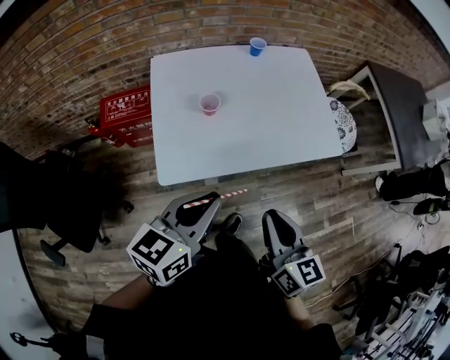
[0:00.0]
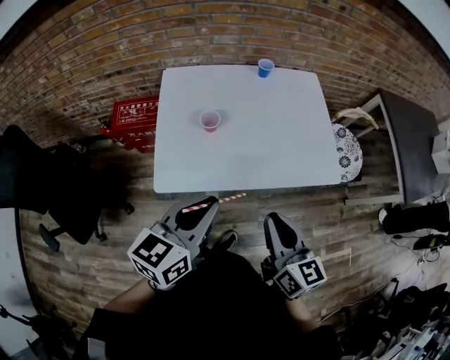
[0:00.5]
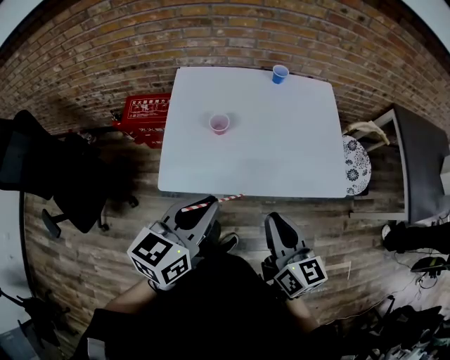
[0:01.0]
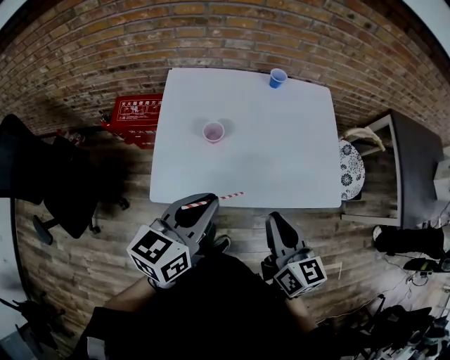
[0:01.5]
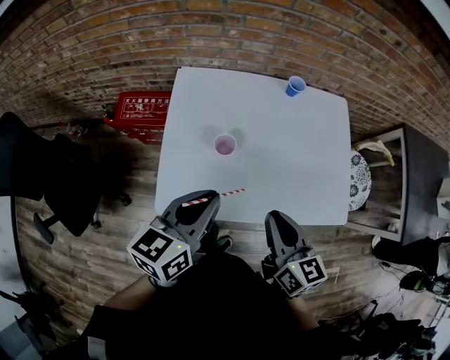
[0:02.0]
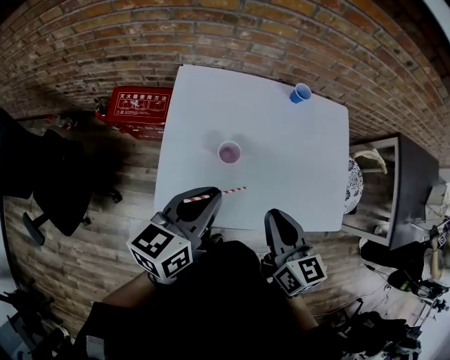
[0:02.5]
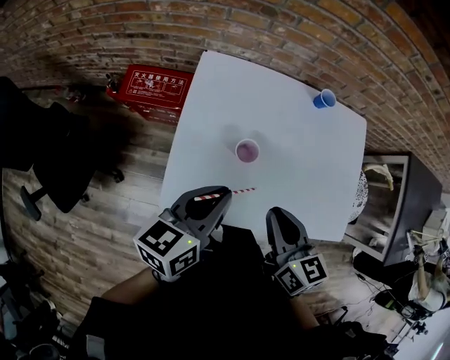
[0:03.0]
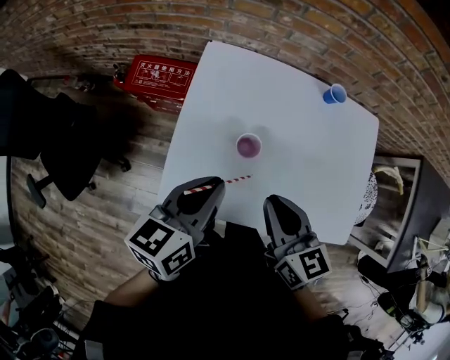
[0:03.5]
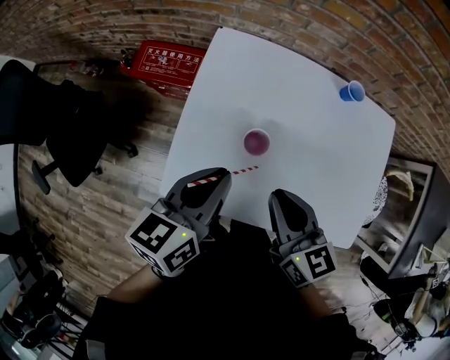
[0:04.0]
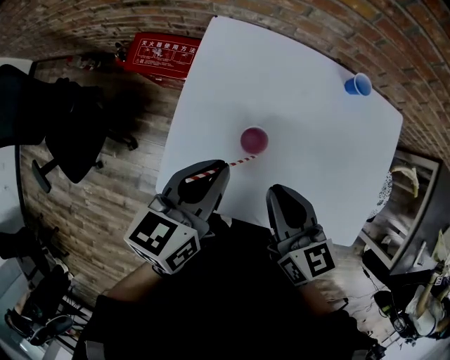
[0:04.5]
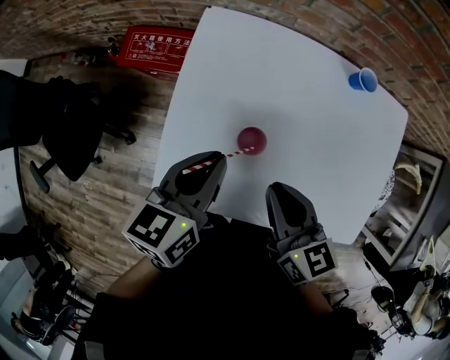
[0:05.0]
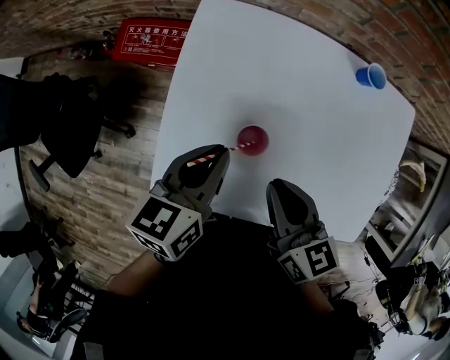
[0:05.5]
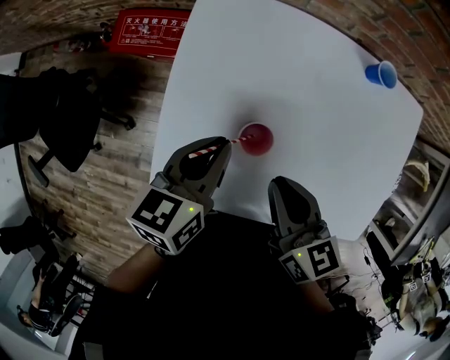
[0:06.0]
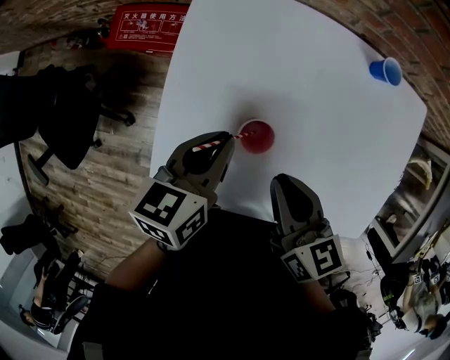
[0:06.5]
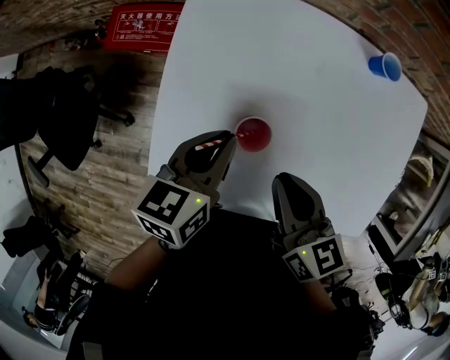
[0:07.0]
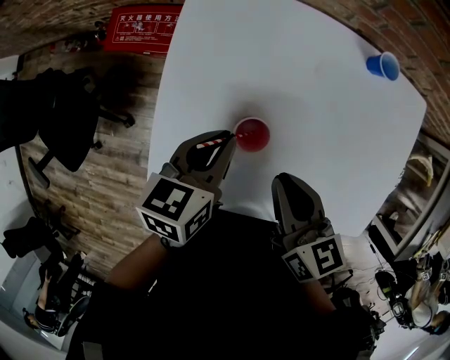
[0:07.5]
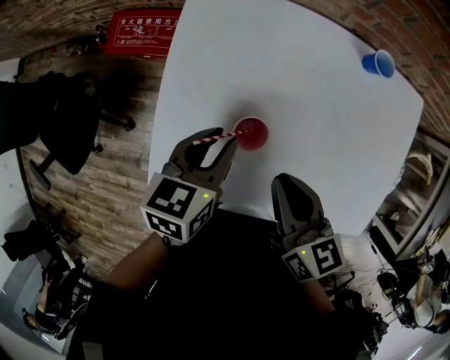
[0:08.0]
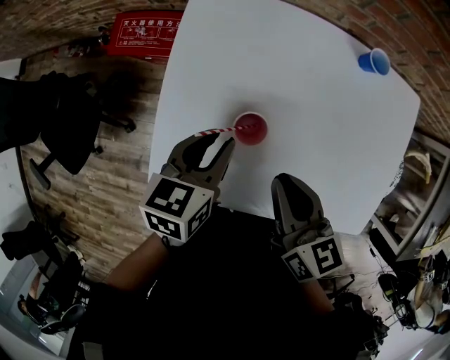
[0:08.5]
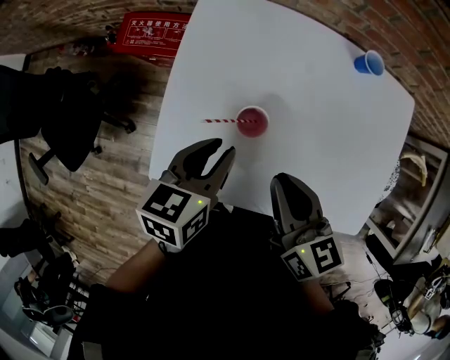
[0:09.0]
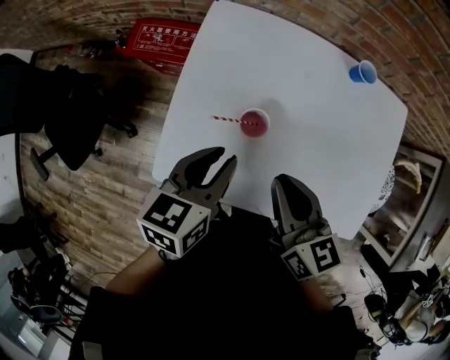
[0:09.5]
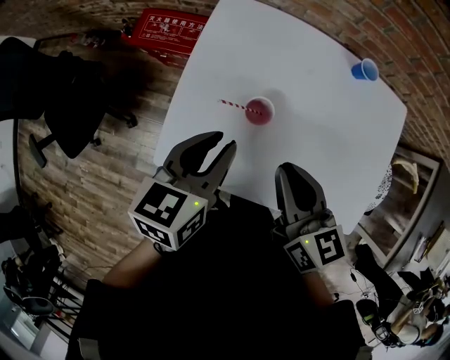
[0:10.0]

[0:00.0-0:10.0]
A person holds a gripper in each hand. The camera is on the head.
0:00.0 to 0:02.0: The two grippers go about 20 cm forward.
0:02.0 to 0:04.0: The left gripper goes some 10 cm forward and downward. Meanwhile the right gripper travels forward and to the left by some 15 cm, and swivels about 20 degrees.
0:04.0 to 0:06.0: Both grippers travel together downward and forward, about 10 cm.
0:06.0 to 0:08.0: The grippers move only a little.
0:08.0 to 0:10.0: The left gripper shifts some 15 cm upward and backward, while the right gripper is displaced upward by about 10 cm.

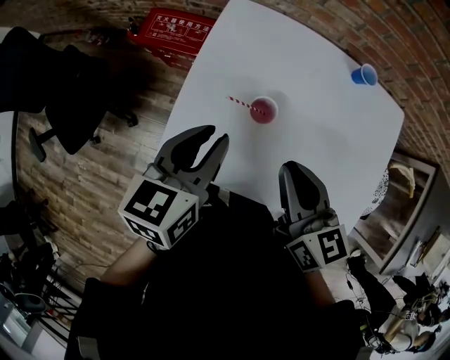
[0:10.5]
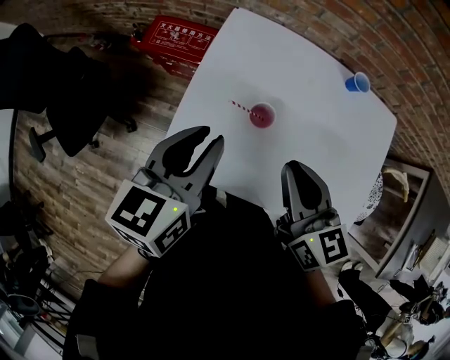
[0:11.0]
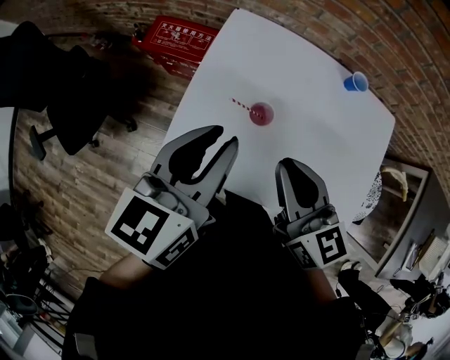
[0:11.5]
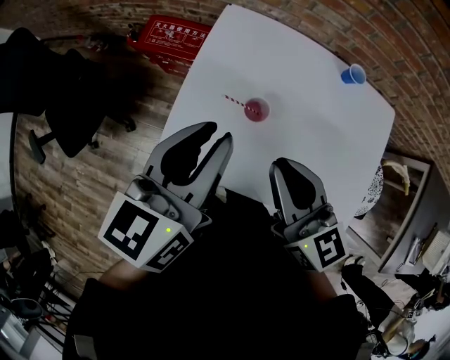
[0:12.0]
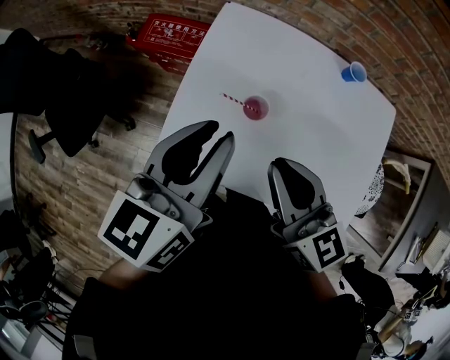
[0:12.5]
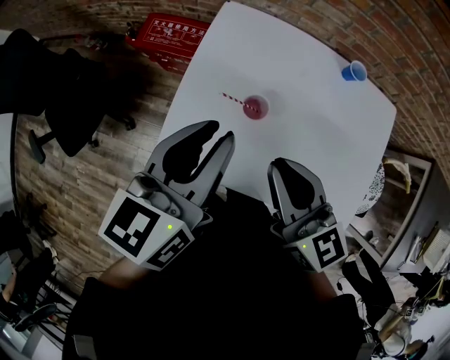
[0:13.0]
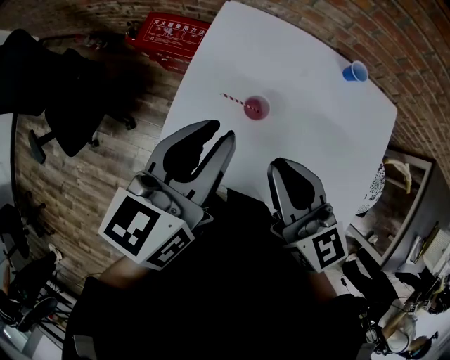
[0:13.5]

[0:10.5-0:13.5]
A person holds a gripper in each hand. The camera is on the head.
0:10.5 to 0:12.0: The grippers both shift upward by about 10 cm.
0:12.0 to 0:13.5: Neither gripper changes place.

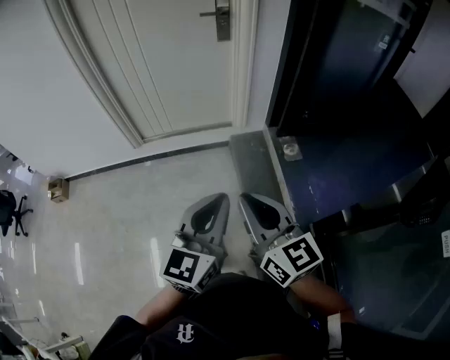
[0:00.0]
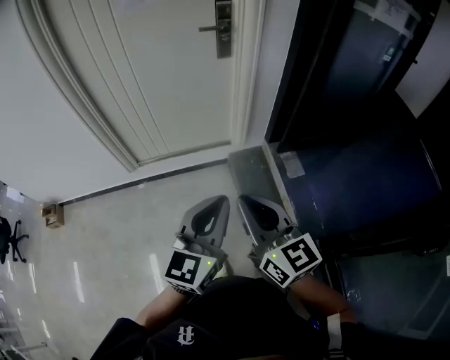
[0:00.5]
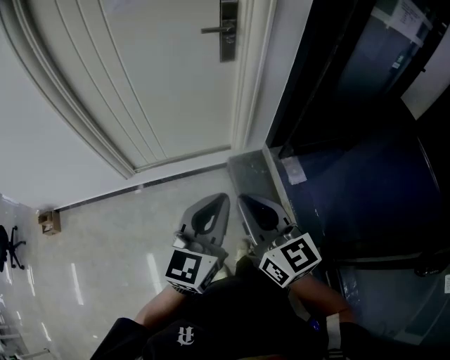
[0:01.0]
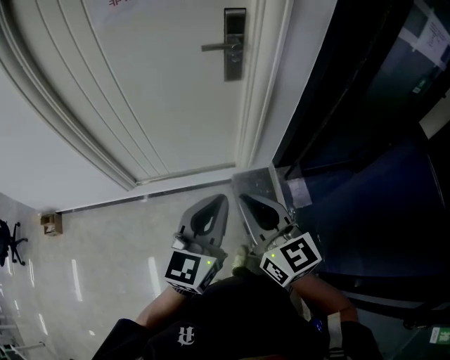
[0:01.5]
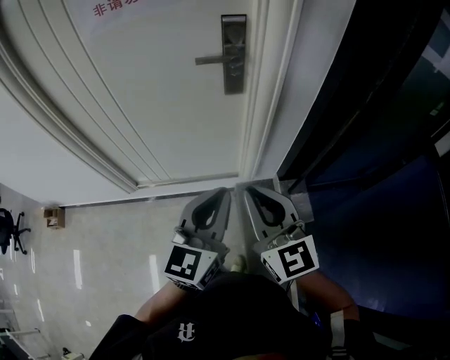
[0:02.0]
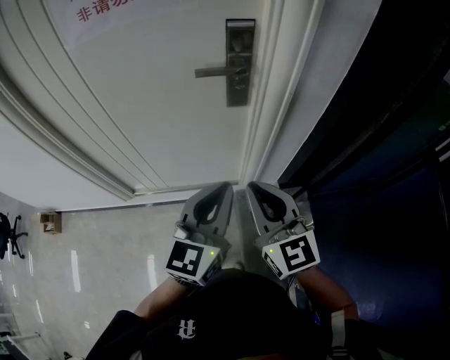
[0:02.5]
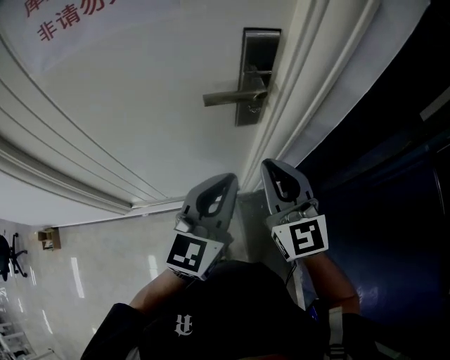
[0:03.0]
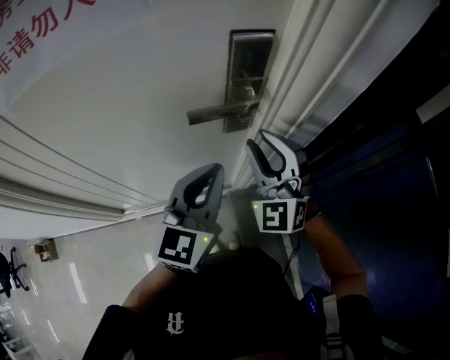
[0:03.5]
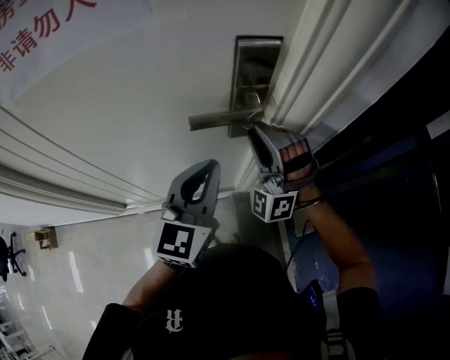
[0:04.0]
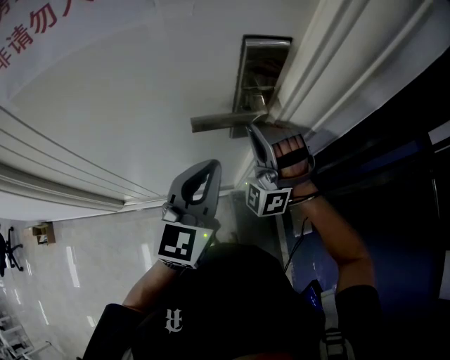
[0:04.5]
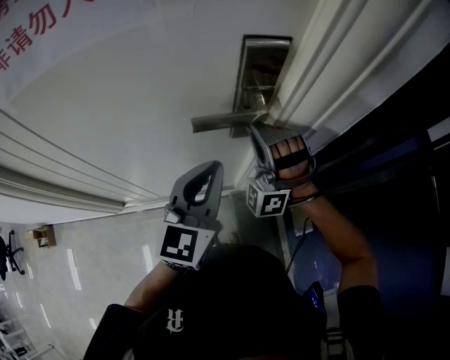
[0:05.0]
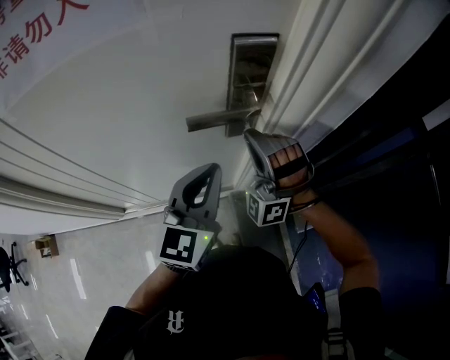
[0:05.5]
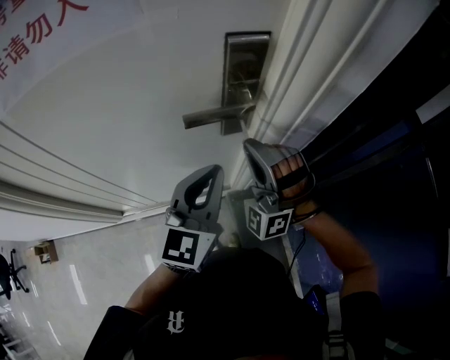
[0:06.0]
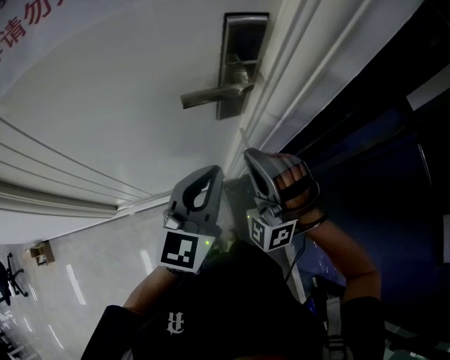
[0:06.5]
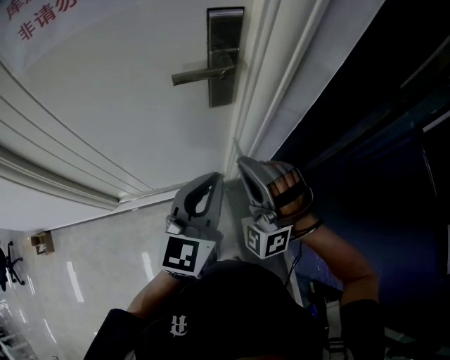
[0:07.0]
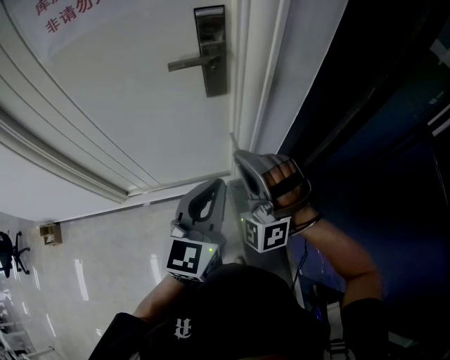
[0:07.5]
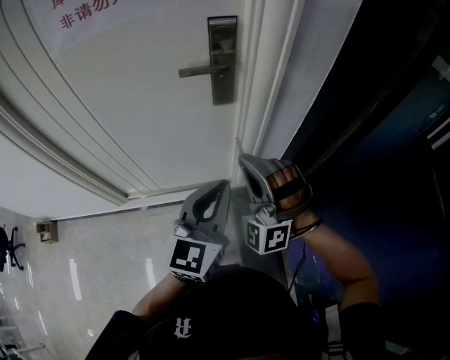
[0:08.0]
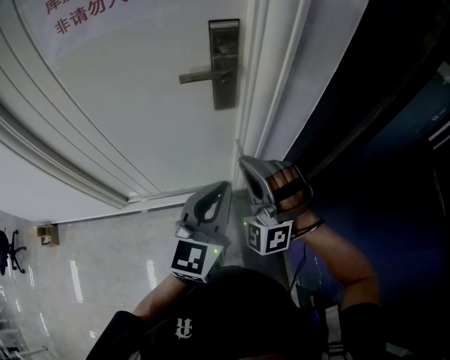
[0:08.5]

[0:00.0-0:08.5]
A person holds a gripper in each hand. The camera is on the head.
0:00.0 to 0:02.0: The two grippers travel together, forward, approximately 50 cm.
0:02.0 to 0:04.0: Both grippers travel together forward, about 35 cm. The right gripper rotates around the line of its fingers by some 80 degrees, counterclockwise from behind, and opens.
0:04.0 to 0:06.5: The right gripper is displaced backward by roughly 10 cm, and closes; the left gripper shifts by some 5 cm.
0:06.5 to 0:08.5: The right gripper heads backward, covering approximately 10 cm. The left gripper shifts about 15 cm backward and to the right.

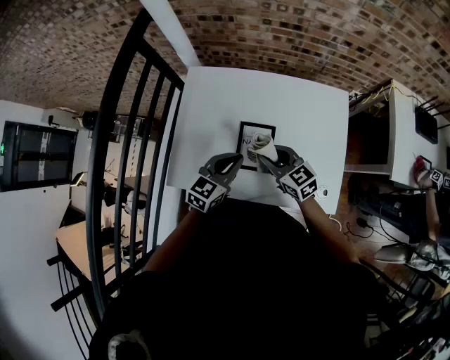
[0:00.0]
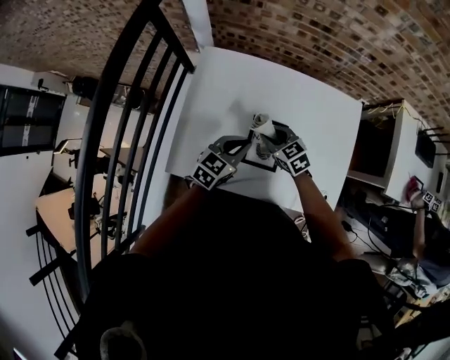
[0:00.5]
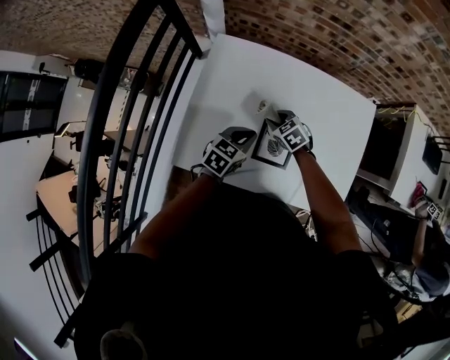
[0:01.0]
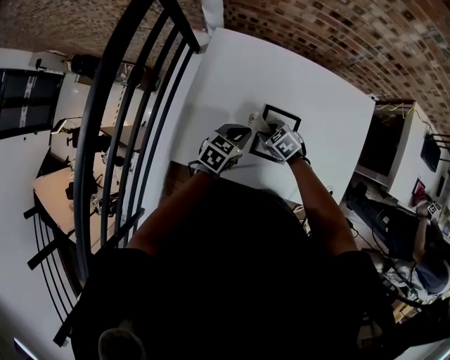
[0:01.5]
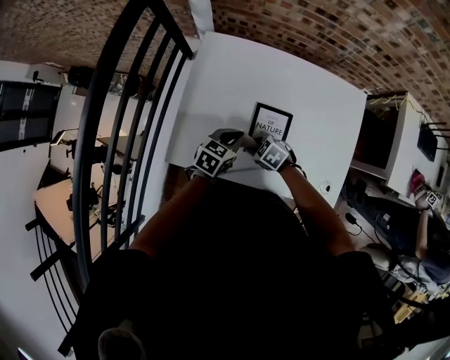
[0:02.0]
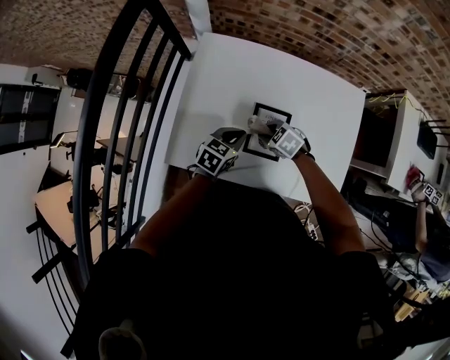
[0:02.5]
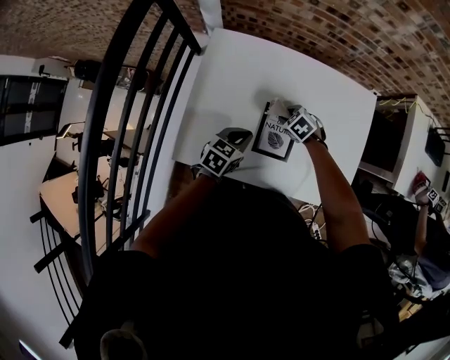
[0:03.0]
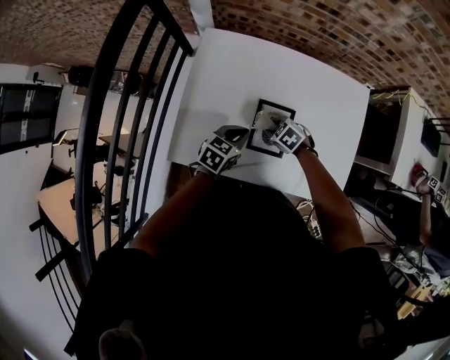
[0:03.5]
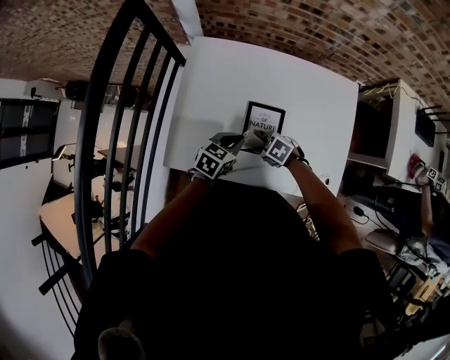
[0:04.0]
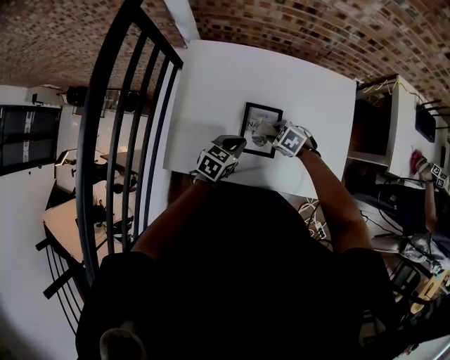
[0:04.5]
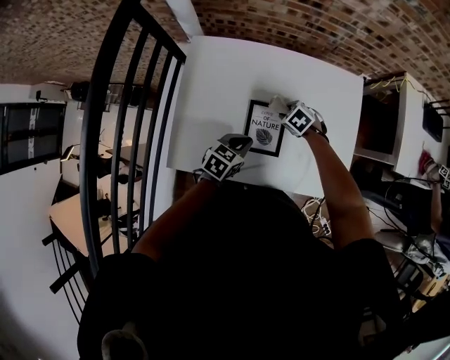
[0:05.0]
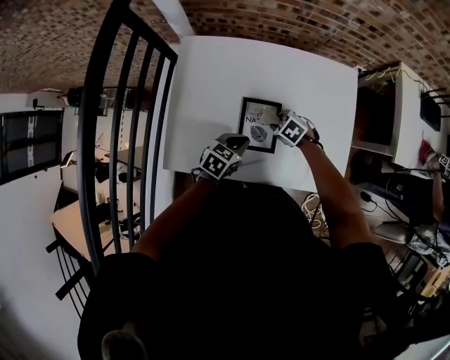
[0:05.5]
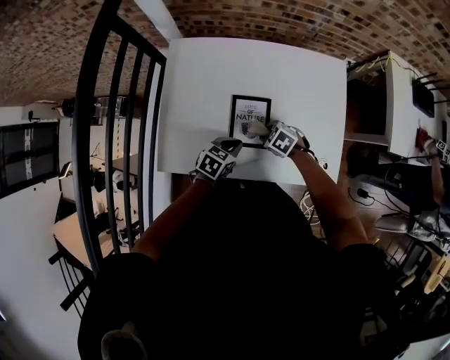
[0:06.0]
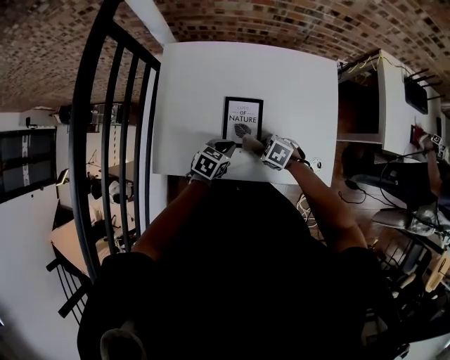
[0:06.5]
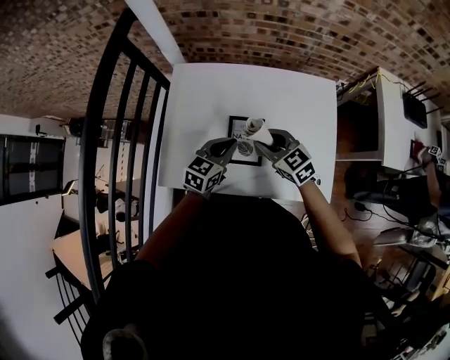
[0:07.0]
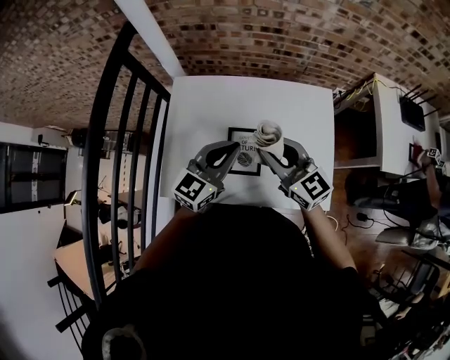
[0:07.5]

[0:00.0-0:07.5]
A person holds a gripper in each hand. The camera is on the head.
0:00.0 to 0:02.0: The two grippers go some 15 cm downward. The right gripper points its fingers approximately 30 degrees further downward; the left gripper swivels some 20 degrees.
0:05.5 to 0:07.5: The grippers both shift upward by some 30 cm. The right gripper tilts its fingers some 60 degrees upward; the left gripper tips its fingers upward by approximately 40 degrees.
